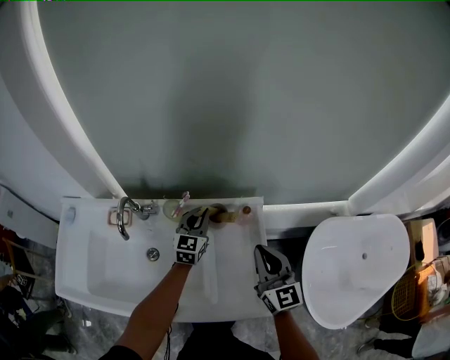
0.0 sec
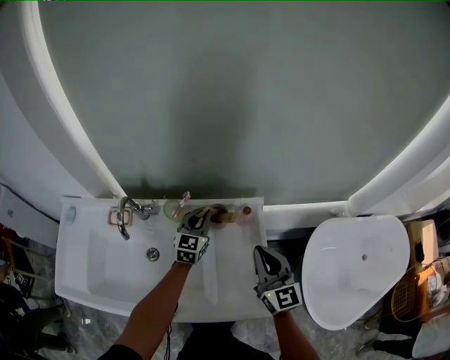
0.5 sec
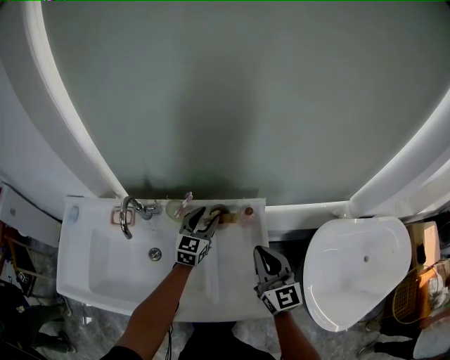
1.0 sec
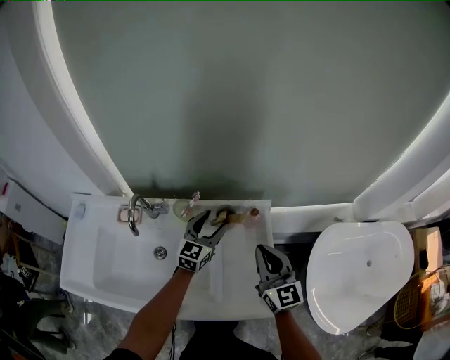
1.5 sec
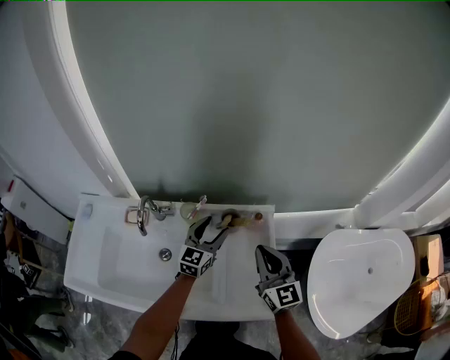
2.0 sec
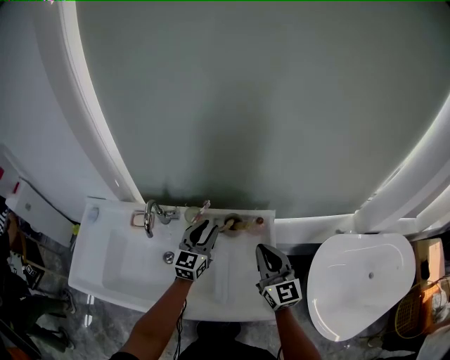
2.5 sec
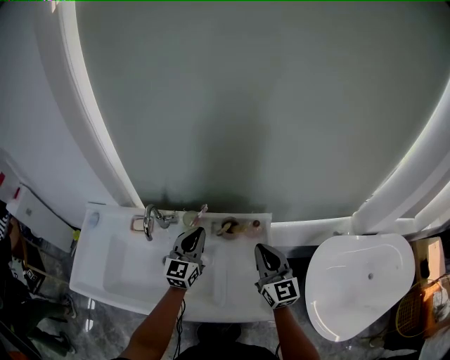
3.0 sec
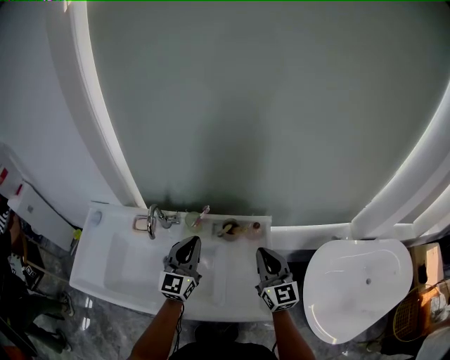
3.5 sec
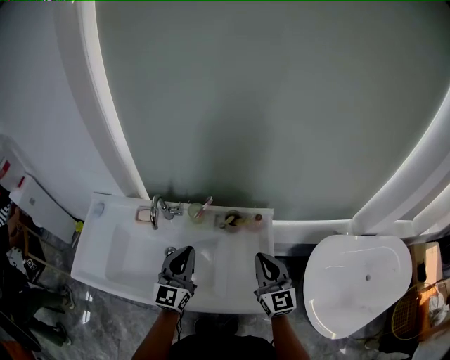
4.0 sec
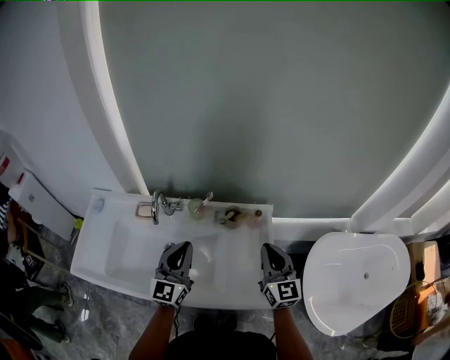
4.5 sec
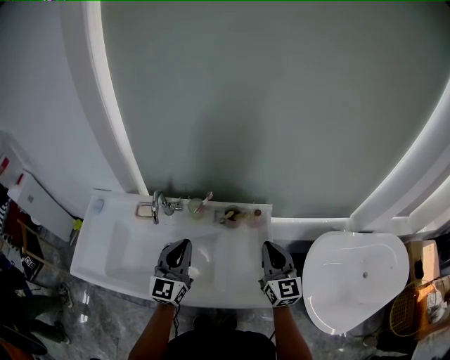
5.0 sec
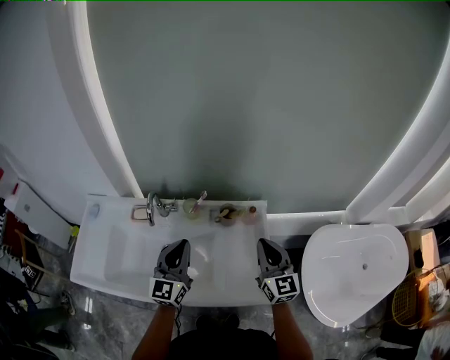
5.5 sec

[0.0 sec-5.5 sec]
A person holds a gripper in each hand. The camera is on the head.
0.0 sec to 2.0 sec: The left gripper is displaced backward by approximately 5 cm, and opens its fingers.
2.0 sec to 3.5 sec: The left gripper is displaced upward, backward and to the left by roughly 15 cm, and closes up.
3.5 sec to 5.5 sec: The left gripper is displaced backward by about 5 cm.

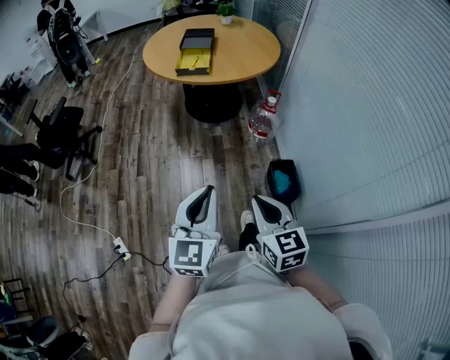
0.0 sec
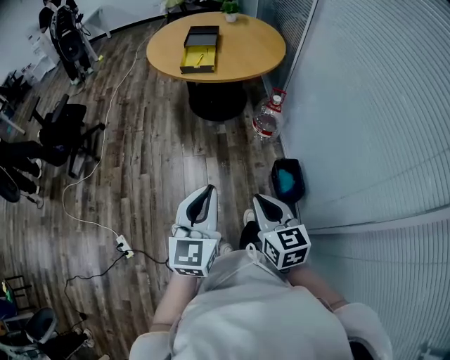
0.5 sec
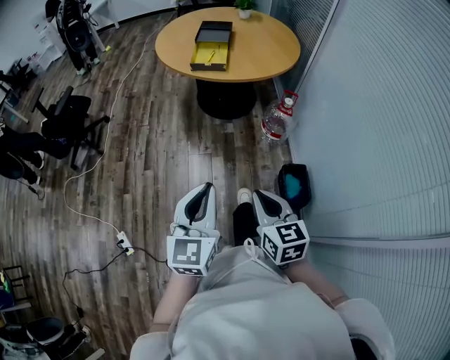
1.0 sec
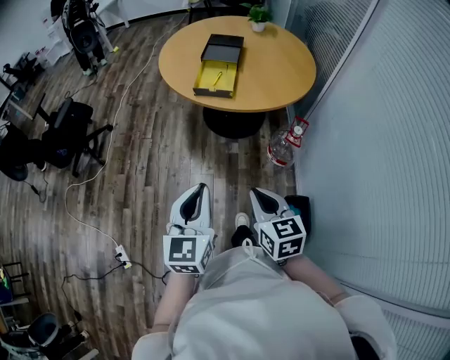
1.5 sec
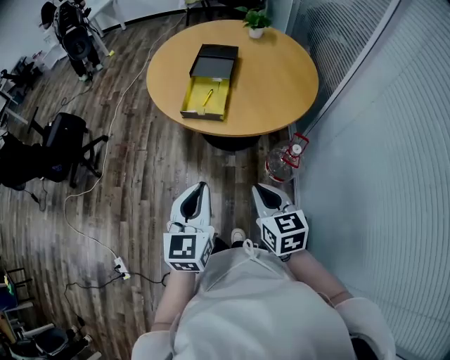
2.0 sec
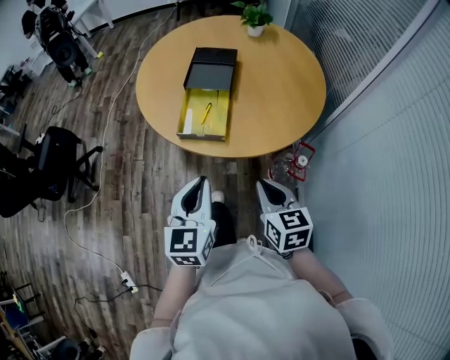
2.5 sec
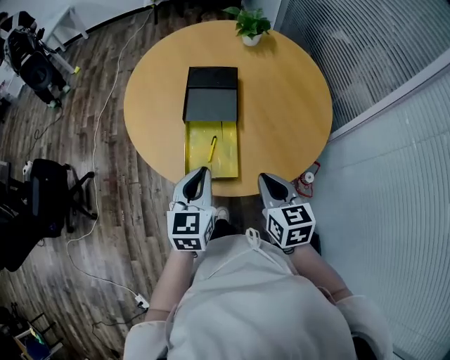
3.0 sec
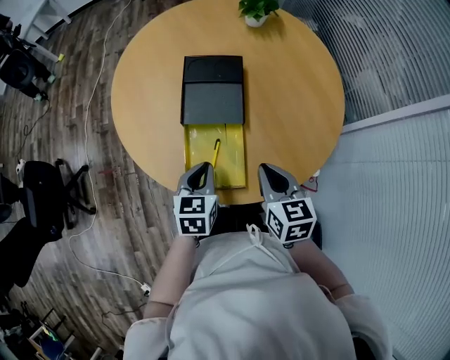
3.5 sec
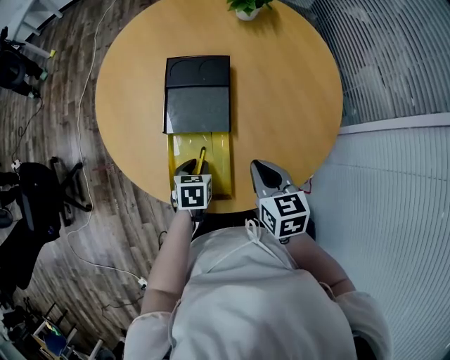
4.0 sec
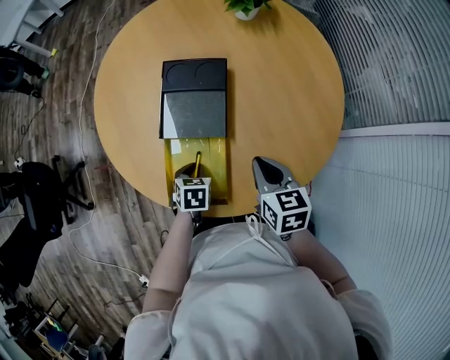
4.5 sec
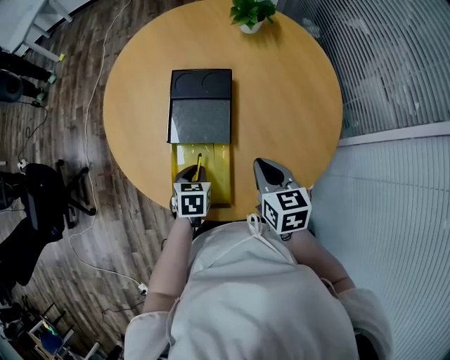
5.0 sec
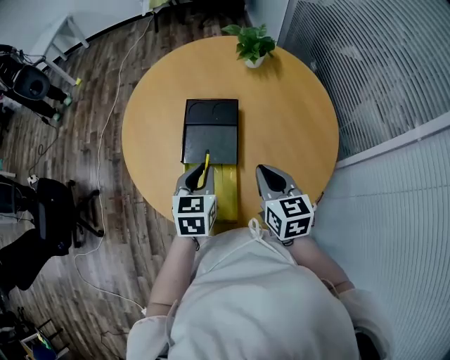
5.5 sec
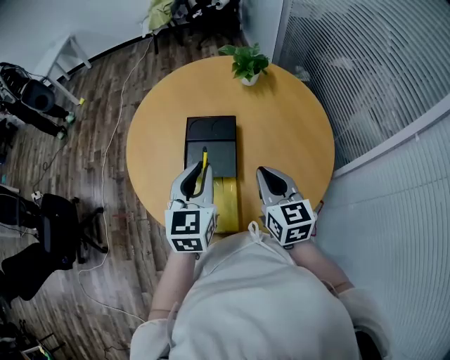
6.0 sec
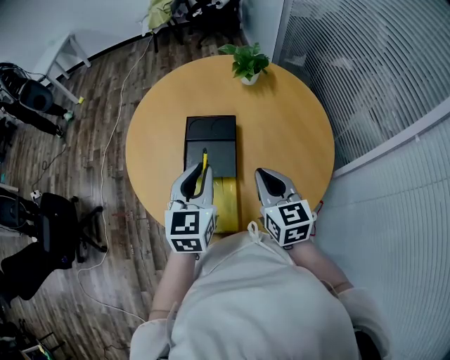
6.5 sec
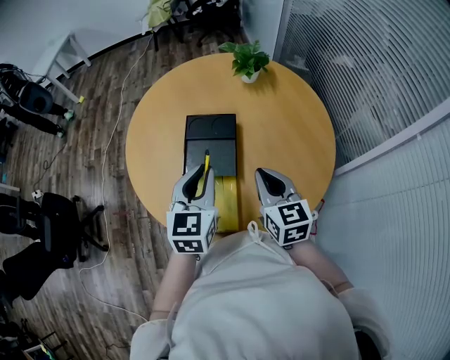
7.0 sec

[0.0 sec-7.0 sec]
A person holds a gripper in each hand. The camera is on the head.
0.0 sec to 2.0 sec: The pair of grippers is taken forward, some 50 cm.
2.0 sec to 3.5 sec: The pair of grippers is taken forward, some 50 cm. The left gripper changes its angle by approximately 30 degrees.
3.5 sec to 5.0 sec: The left gripper shifts some 10 cm downward and forward. The right gripper is displaced forward by some 5 cm.
5.0 sec to 7.0 sec: The right gripper moves upward, some 10 cm. The left gripper goes about 25 cm upward, and angles its fingers upward, by approximately 40 degrees.

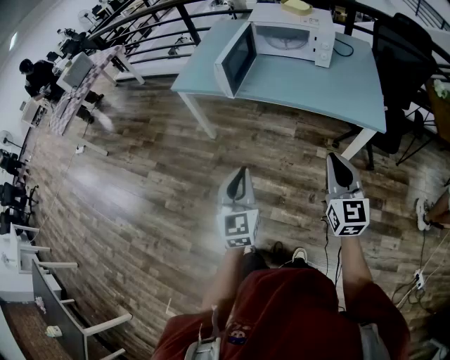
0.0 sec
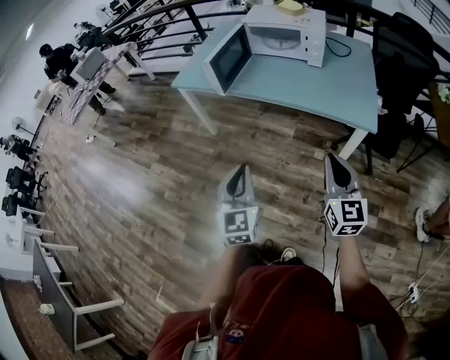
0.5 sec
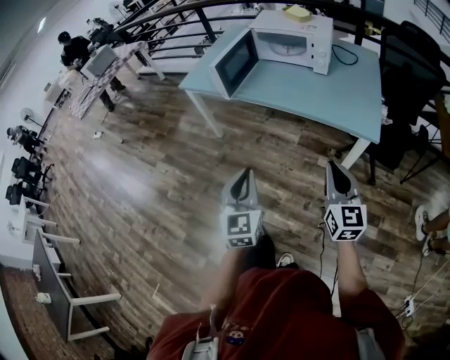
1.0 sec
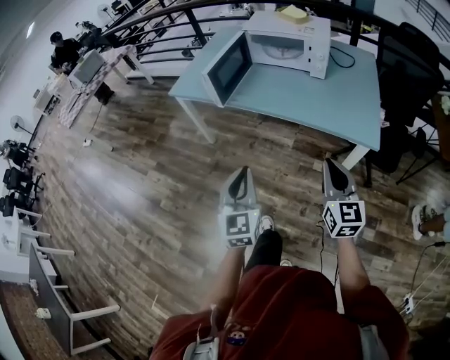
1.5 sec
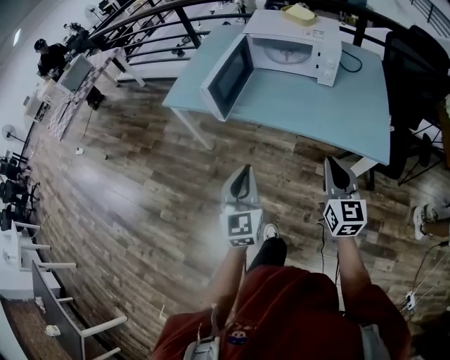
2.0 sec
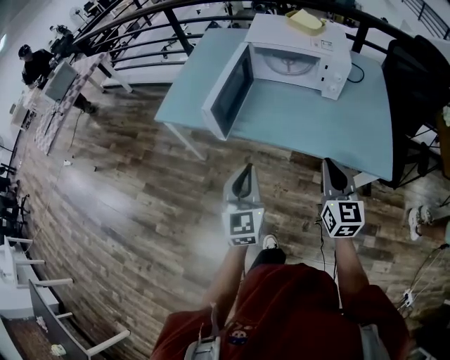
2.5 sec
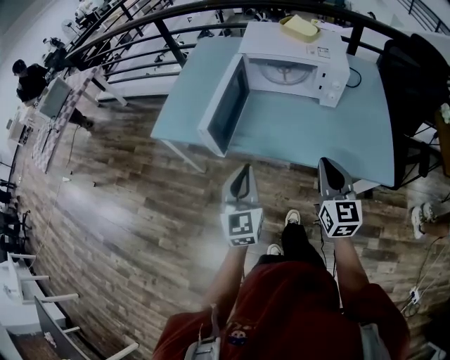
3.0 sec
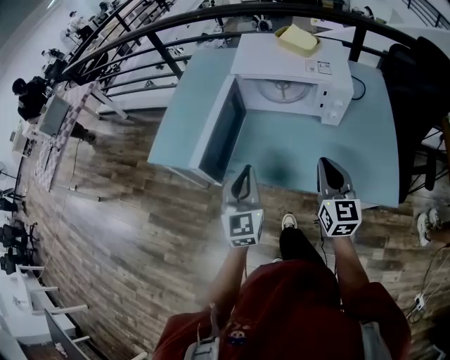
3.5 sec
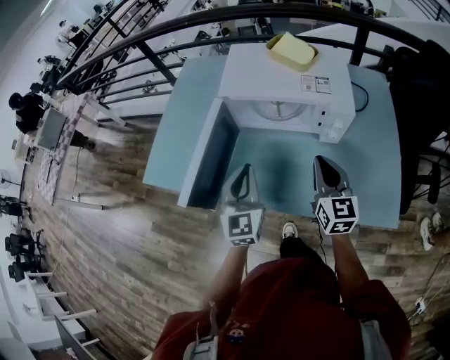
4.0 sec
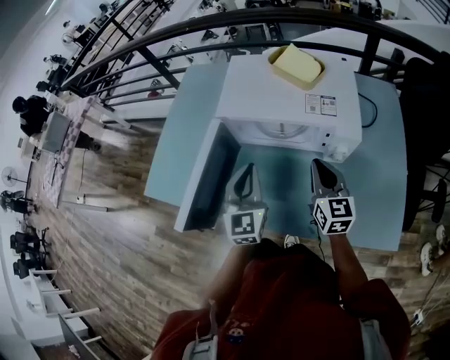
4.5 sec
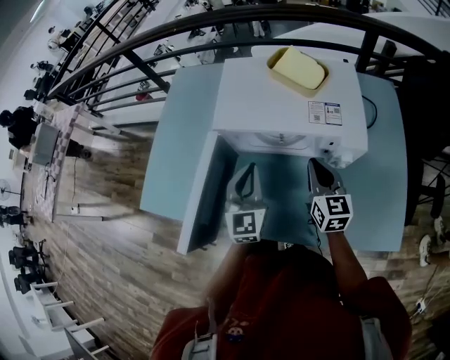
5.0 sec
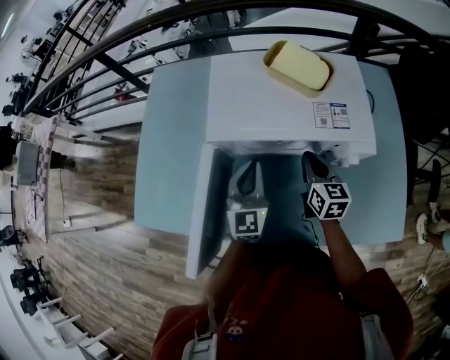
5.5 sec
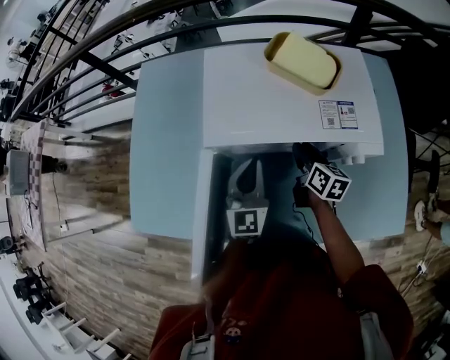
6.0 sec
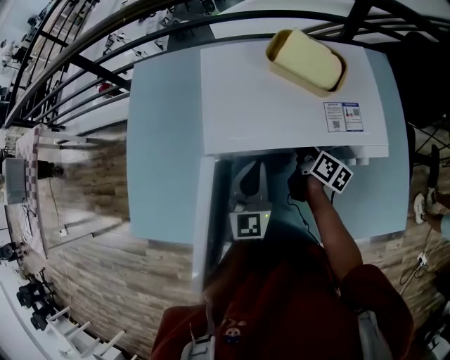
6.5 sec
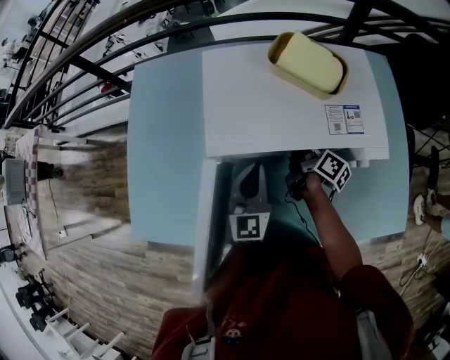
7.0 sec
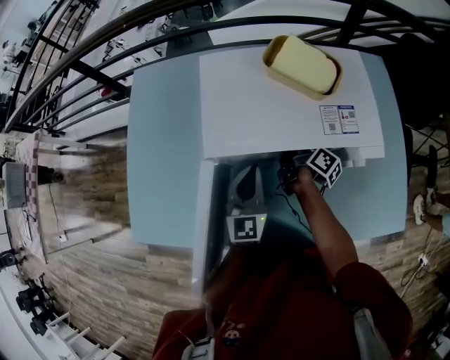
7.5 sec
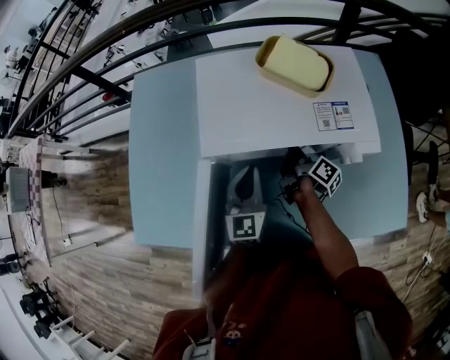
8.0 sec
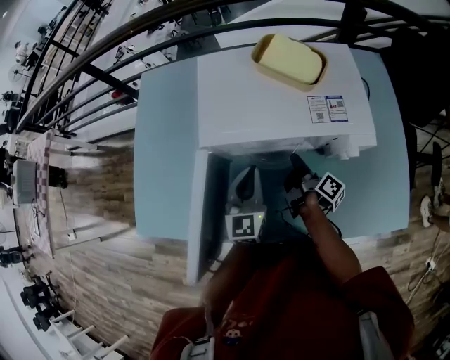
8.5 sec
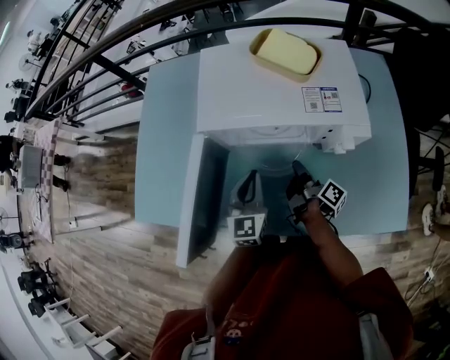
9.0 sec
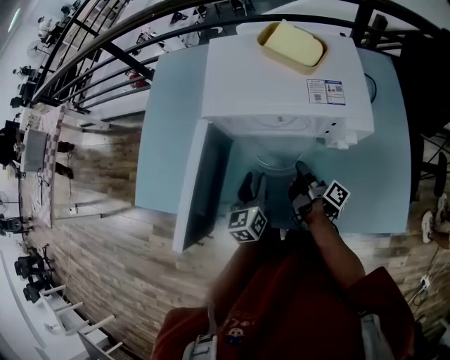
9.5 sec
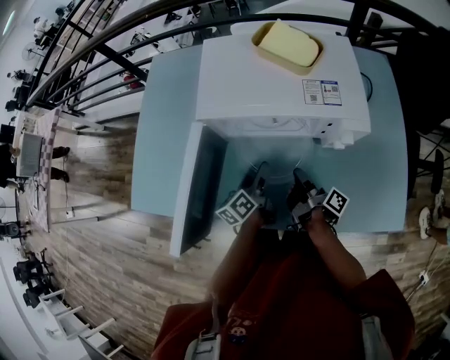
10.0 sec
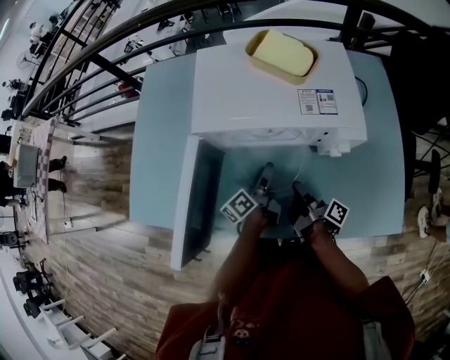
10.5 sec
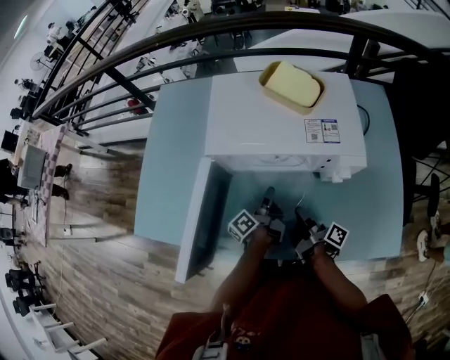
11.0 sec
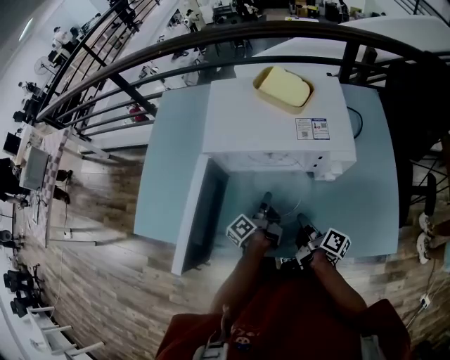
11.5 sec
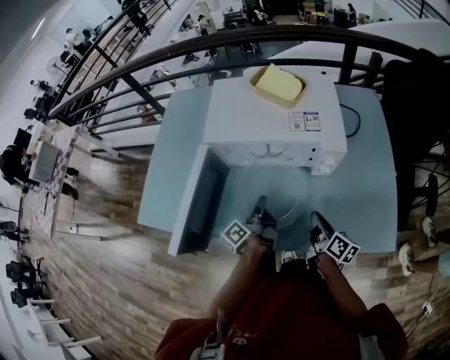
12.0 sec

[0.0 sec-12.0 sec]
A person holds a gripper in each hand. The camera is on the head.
0.0 sec to 2.0 sec: The grippers both shift forward and to the right by about 20 cm.
2.0 sec to 4.0 sec: The pair of grippers is taken forward, about 40 cm.
4.0 sec to 6.0 sec: The left gripper moves forward, approximately 25 cm. The right gripper heads forward and downward, covering some 30 cm, rotates some 40 degrees, and opens up.
6.0 sec to 8.0 sec: The right gripper rolls clockwise, seen from behind, by approximately 40 degrees, and closes its fingers.
8.0 sec to 10.0 sec: The left gripper is displaced downward and backward by some 10 cm, rolls counterclockwise, seen from behind, by approximately 60 degrees, and opens up; the right gripper is displaced backward by about 15 cm.
10.0 sec to 12.0 sec: The left gripper shifts approximately 5 cm backward, swivels some 30 degrees, and closes its fingers; the right gripper goes approximately 15 cm backward and to the right, and rolls counterclockwise, seen from behind, by roughly 40 degrees.

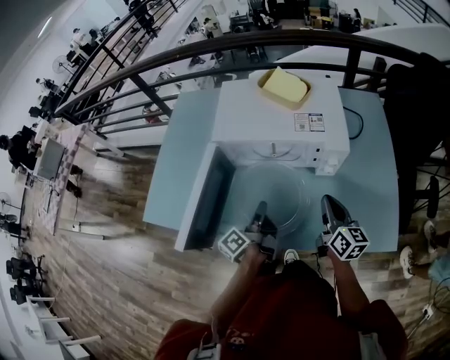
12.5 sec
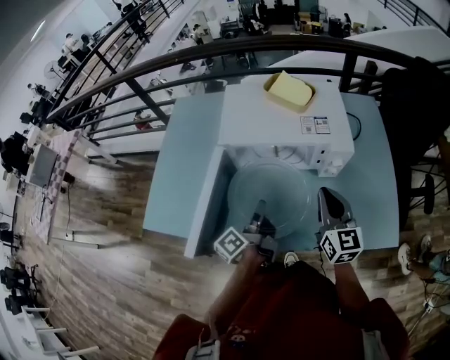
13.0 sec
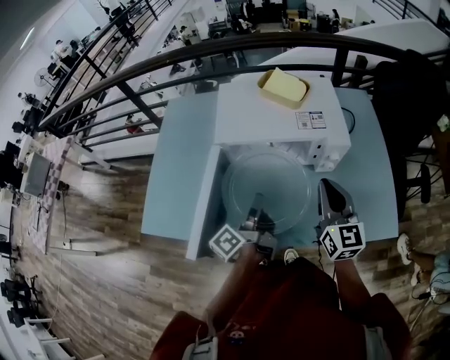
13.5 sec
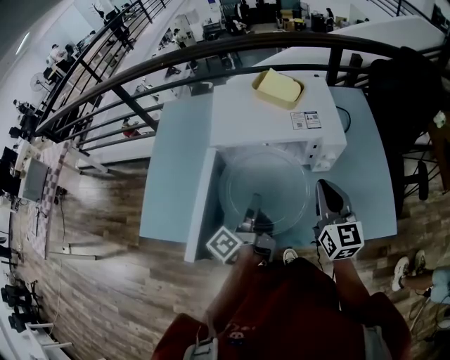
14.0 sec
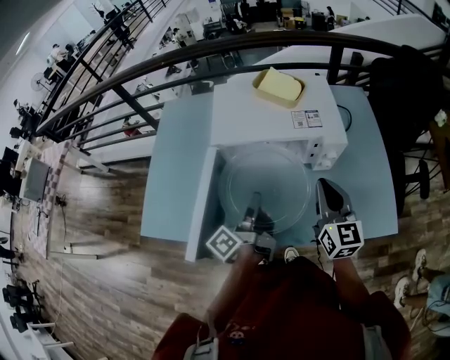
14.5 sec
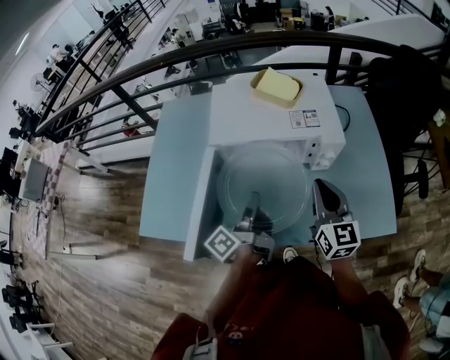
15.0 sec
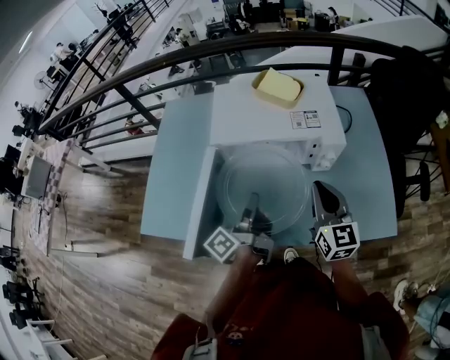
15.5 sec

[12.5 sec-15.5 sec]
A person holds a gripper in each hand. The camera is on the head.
12.5 sec to 14.0 sec: The right gripper shifts some 10 cm upward and to the left, and rotates approximately 30 degrees; the left gripper goes roughly 10 cm upward.
14.0 sec to 15.5 sec: Both grippers stay put.
